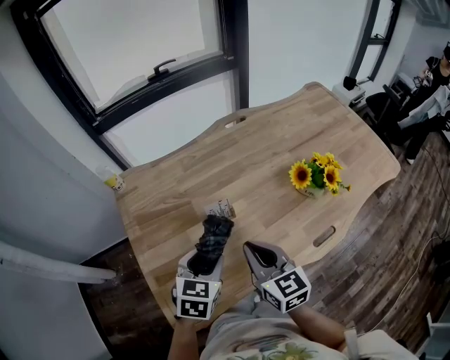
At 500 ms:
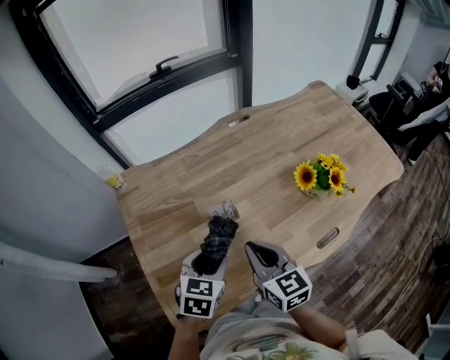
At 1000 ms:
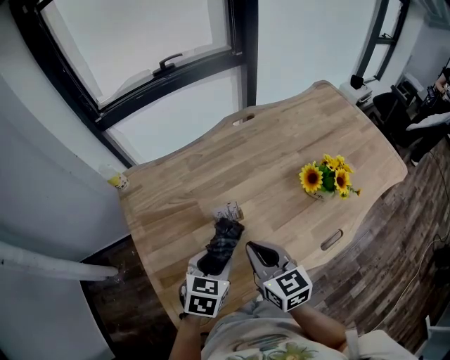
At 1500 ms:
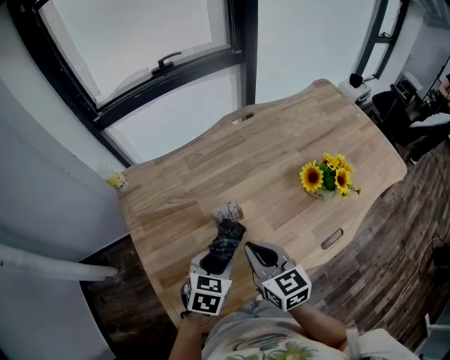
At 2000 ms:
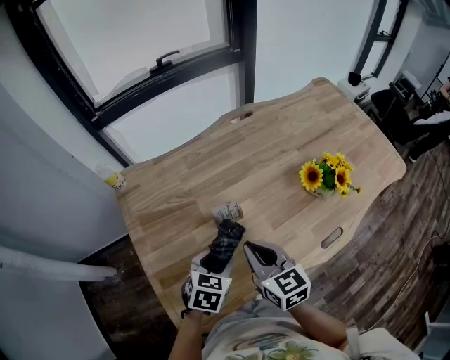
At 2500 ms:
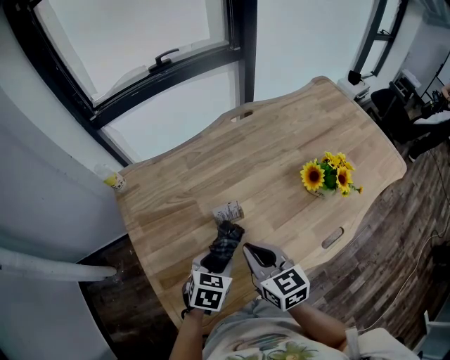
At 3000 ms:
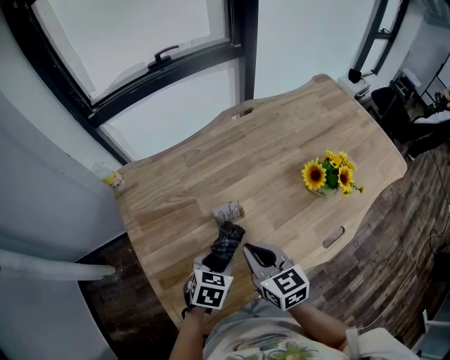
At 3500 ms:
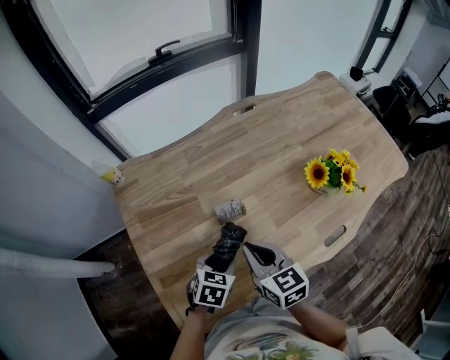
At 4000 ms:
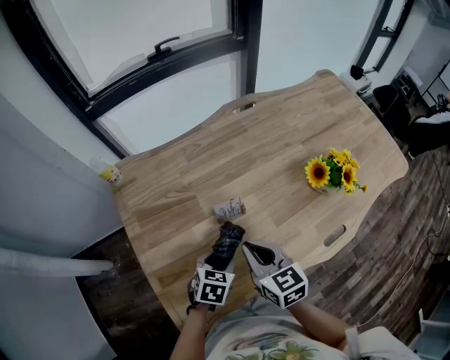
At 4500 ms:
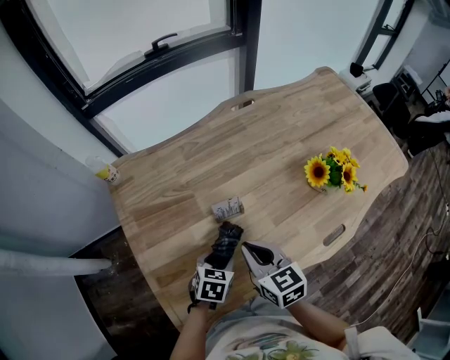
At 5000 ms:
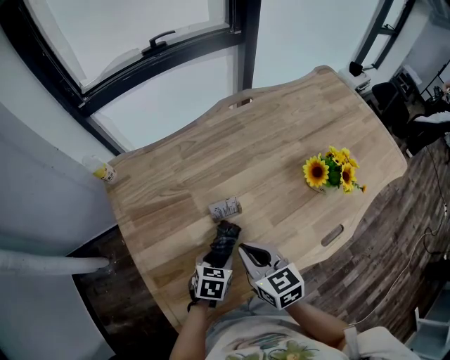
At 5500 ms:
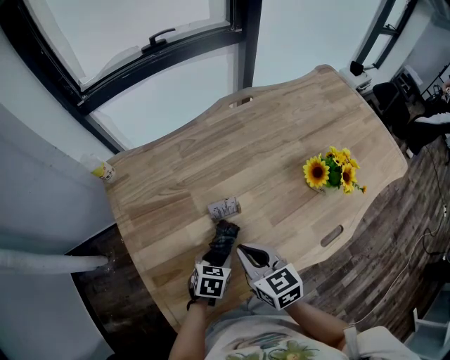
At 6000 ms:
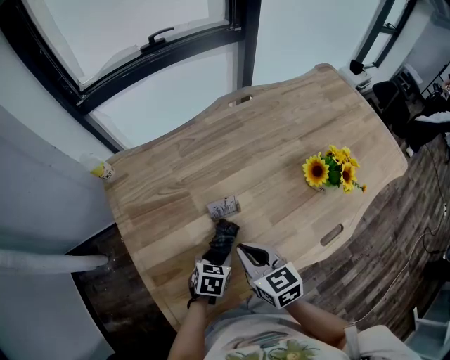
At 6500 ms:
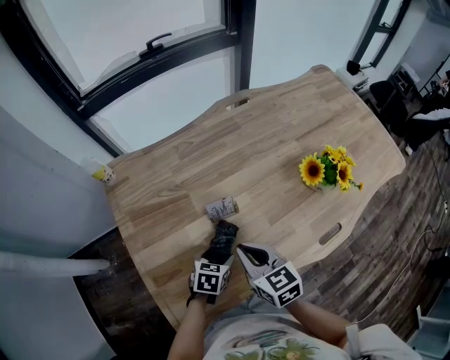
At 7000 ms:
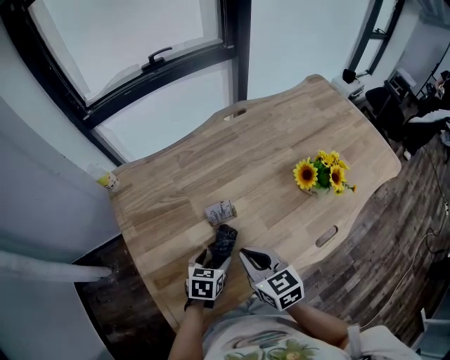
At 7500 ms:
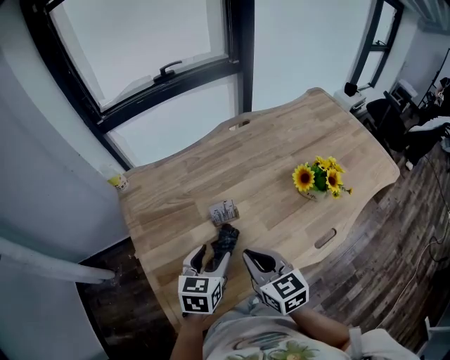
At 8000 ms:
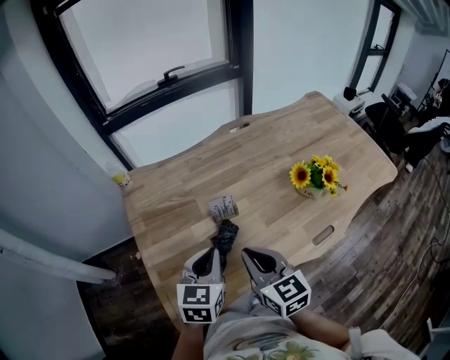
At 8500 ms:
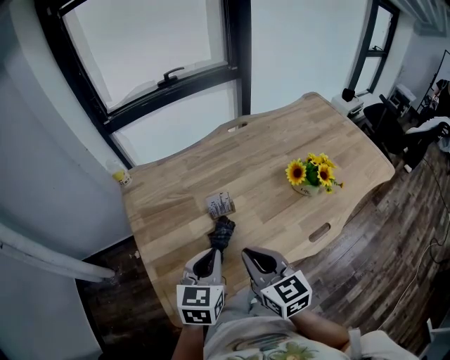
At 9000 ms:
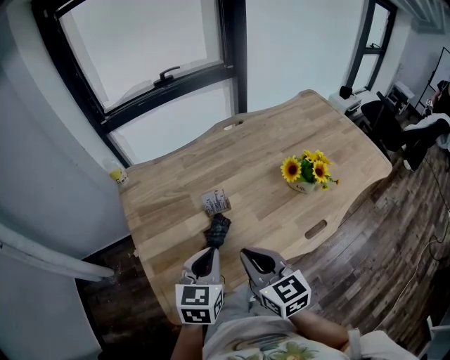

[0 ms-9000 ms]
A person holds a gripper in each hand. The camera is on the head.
0 ms to 2000 ms: The left gripper goes roughly 5 cm downward.
2000 ms to 4500 ms: The left gripper shifts about 10 cm downward.
4500 ms to 7000 ms: The left gripper opens its fingers.
7000 ms to 9000 ms: The right gripper heads upward and backward, covering some 15 cm. The left gripper travels upward by some 20 cm, rotates roughly 30 degrees, and closes.

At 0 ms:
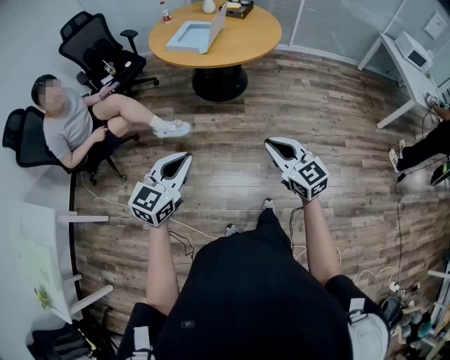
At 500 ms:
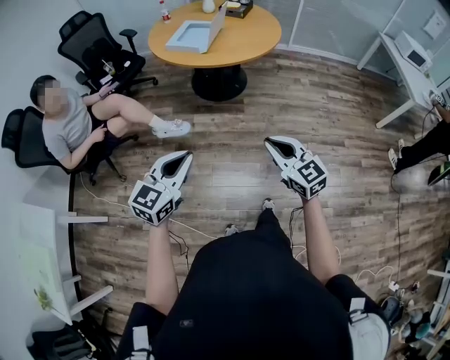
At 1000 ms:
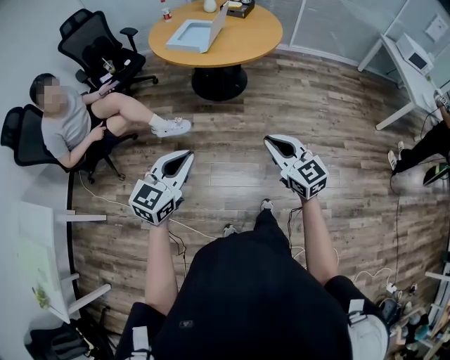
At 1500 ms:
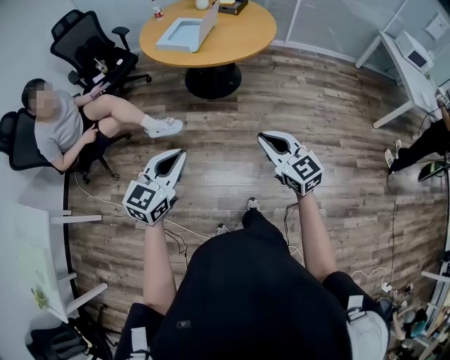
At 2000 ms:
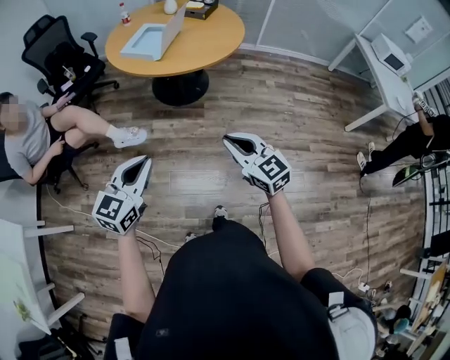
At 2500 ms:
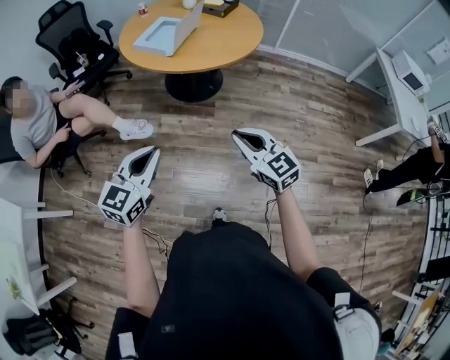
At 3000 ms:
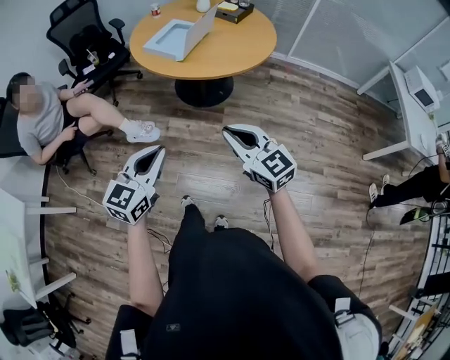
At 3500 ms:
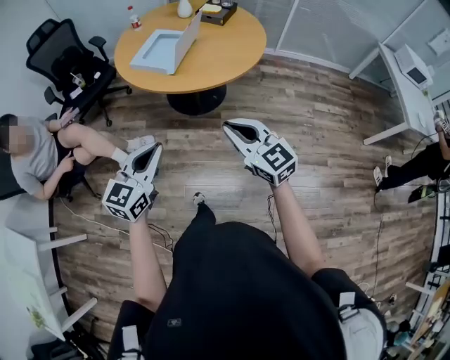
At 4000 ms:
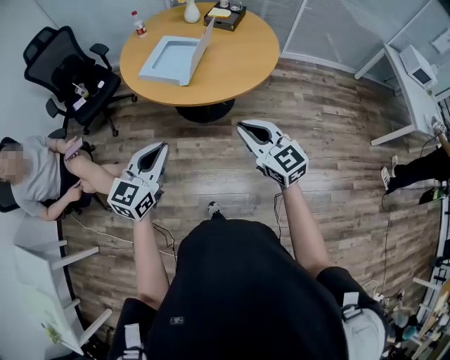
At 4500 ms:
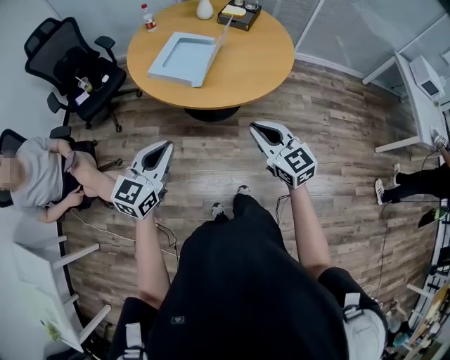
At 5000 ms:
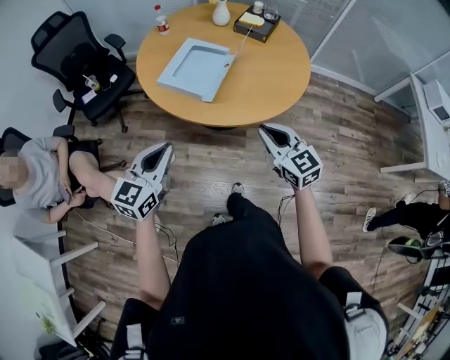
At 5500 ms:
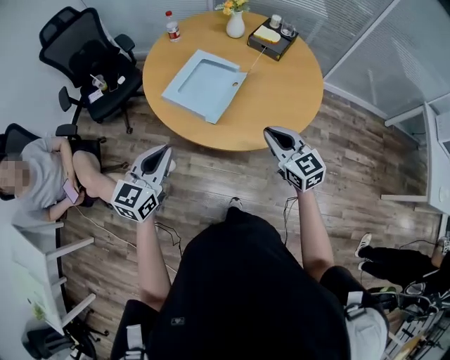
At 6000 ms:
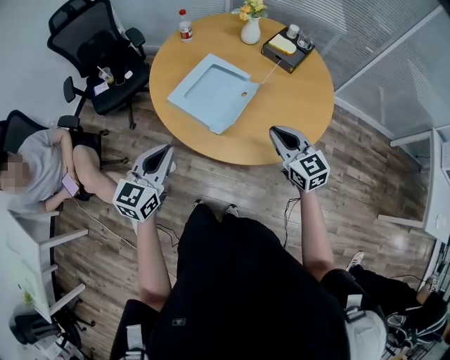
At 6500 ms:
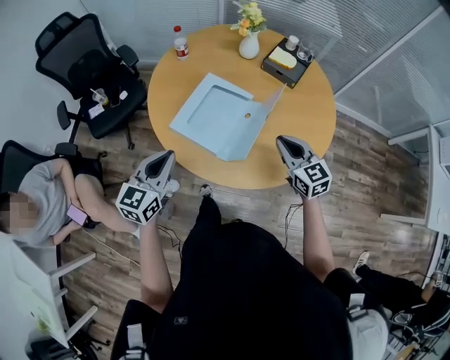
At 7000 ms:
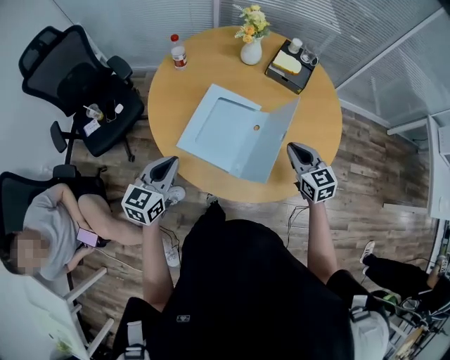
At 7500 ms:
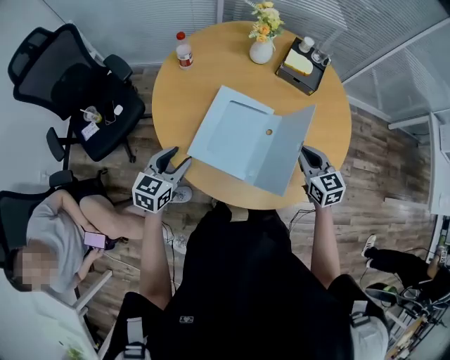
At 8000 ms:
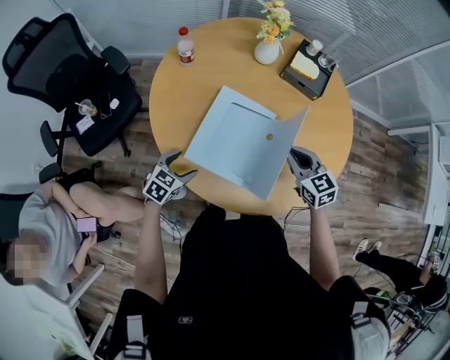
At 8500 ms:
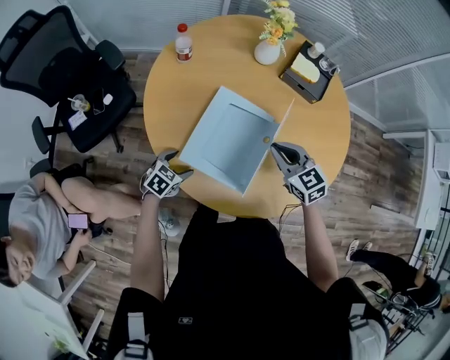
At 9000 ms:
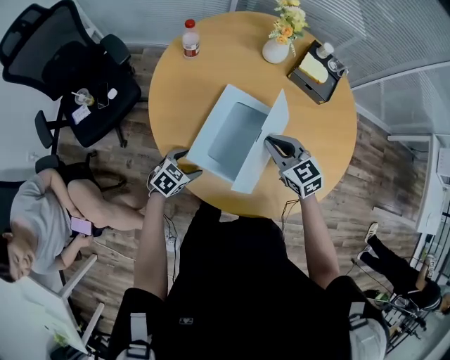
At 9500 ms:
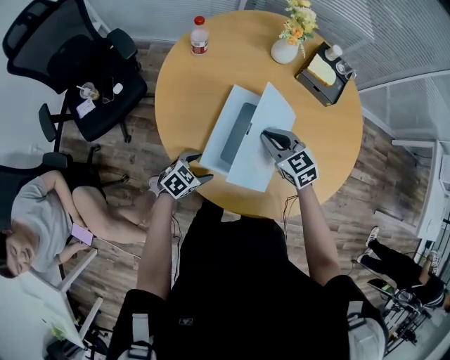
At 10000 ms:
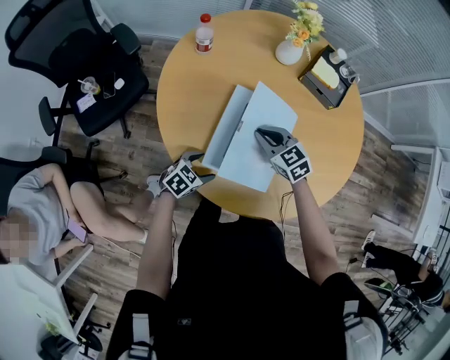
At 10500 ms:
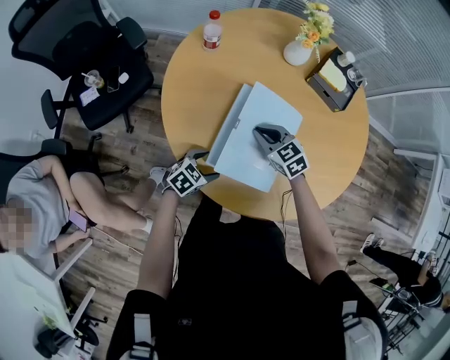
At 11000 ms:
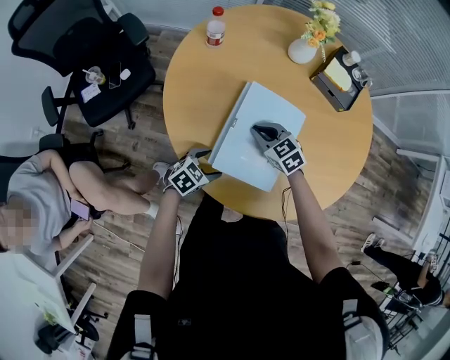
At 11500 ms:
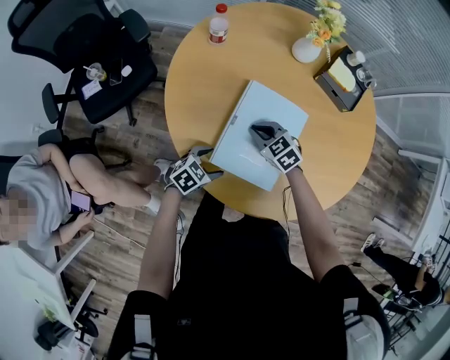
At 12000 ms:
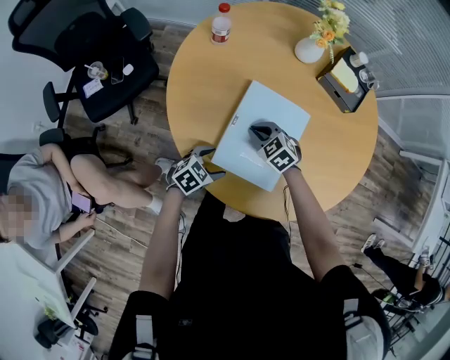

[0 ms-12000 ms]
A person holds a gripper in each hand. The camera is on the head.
0 ms to 2000 ms: The left gripper heads to the right and forward, covering approximately 10 cm; the right gripper heads forward and to the right, covering roughly 15 cm.
2000 ms to 4000 ms: Both grippers move forward, approximately 30 cm.
4000 ms to 6000 ms: The grippers both shift forward by about 30 cm.
6000 ms to 8000 ms: The right gripper shifts approximately 25 cm forward, downward and to the left; the left gripper moves downward, forward and to the left, some 40 cm, points its fingers approximately 30 degrees further downward, and opens up.
8000 ms to 10000 ms: The right gripper goes roughly 15 cm to the left and downward, and changes its angle by approximately 20 degrees. The left gripper is displaced to the right and downward by roughly 5 cm.
10000 ms to 12000 ms: The right gripper shifts approximately 10 cm downward, and rotates roughly 20 degrees.

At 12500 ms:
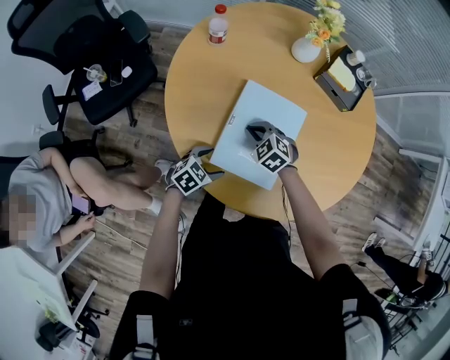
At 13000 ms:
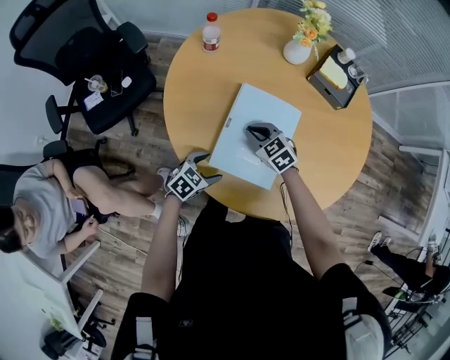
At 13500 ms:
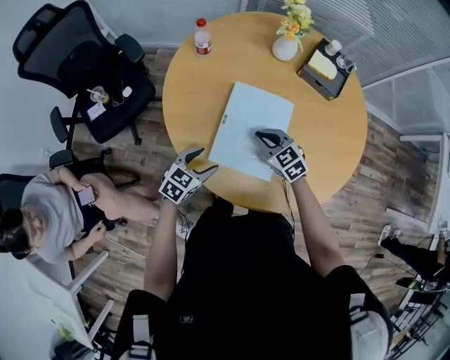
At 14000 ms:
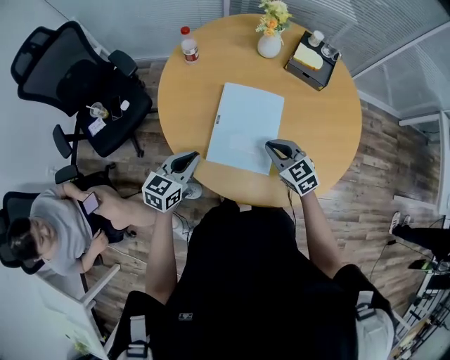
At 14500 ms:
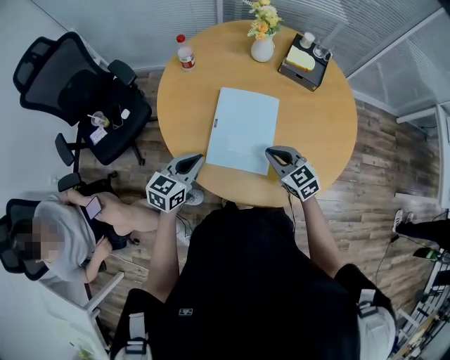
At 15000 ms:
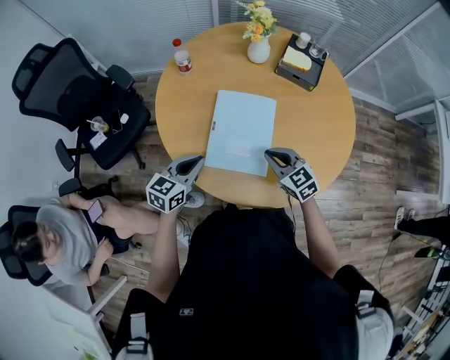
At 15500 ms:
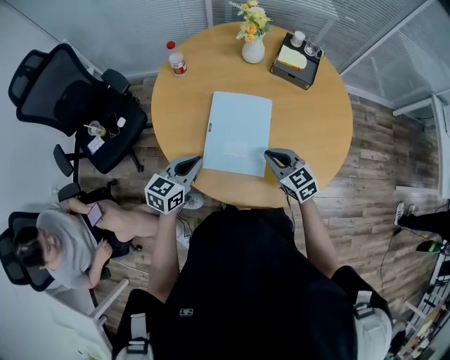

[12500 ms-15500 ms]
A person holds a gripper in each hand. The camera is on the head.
12500 ms to 14000 ms: The right gripper heads upward, to the right and backward, covering roughly 20 cm, and changes its angle by about 30 degrees; the left gripper is displaced upward by approximately 15 cm, turns by approximately 30 degrees, and closes its fingers.
14000 ms to 15500 ms: There are only small adjustments of the grippers.

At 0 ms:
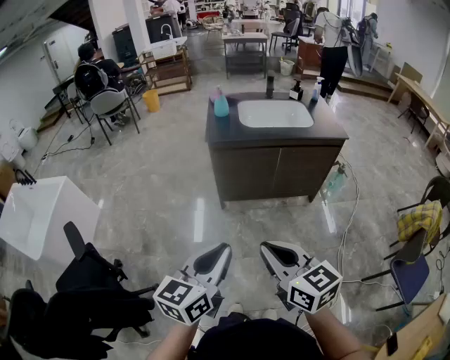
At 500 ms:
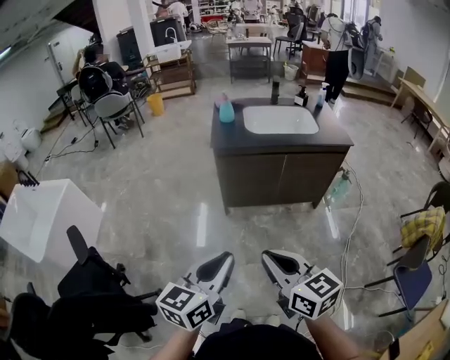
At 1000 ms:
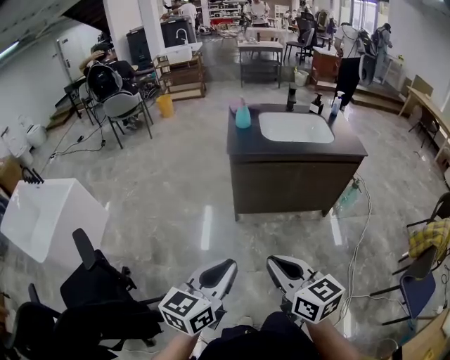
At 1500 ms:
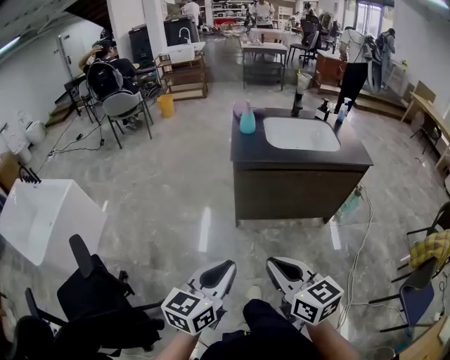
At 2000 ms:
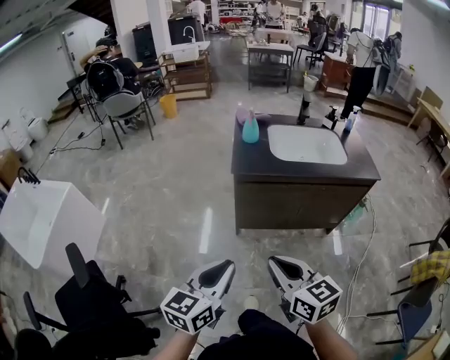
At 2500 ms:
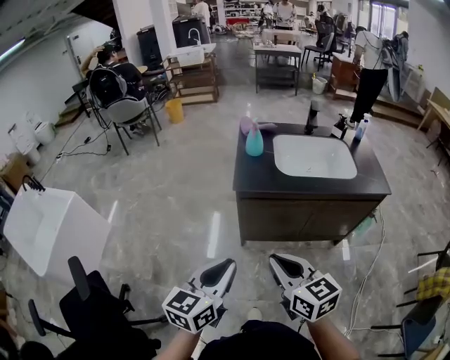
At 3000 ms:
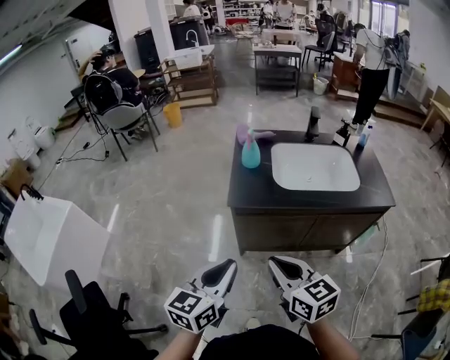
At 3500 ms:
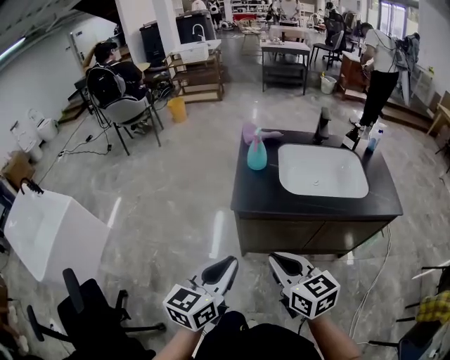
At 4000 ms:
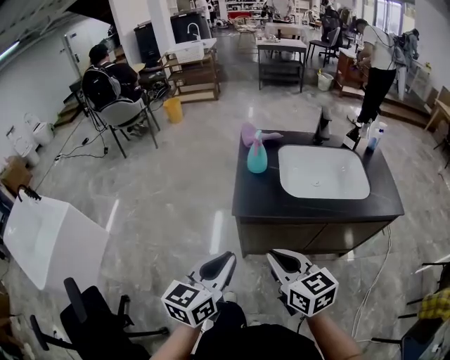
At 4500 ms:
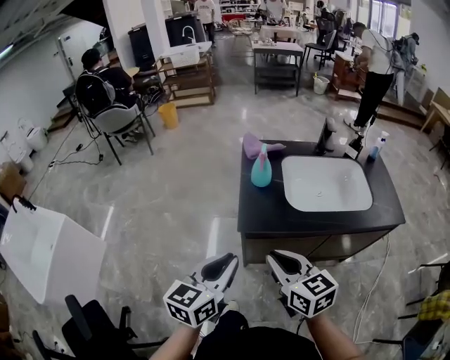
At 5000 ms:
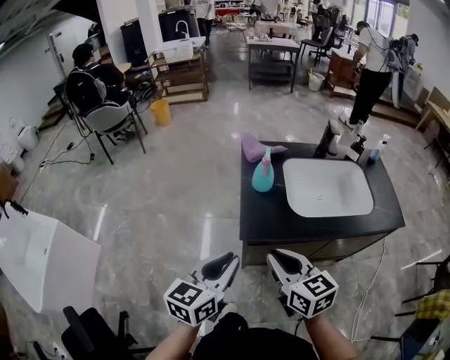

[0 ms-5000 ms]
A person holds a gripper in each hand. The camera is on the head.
0 ms to 2500 ms: Both grippers move forward, about 25 cm.
2500 ms to 5000 ms: The two grippers go approximately 25 cm forward.
